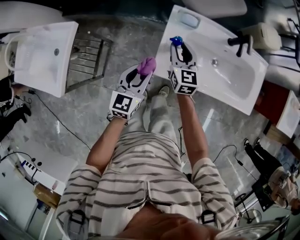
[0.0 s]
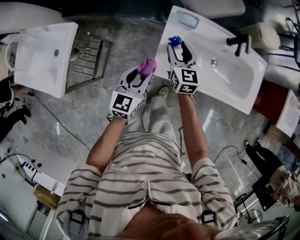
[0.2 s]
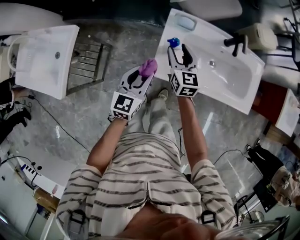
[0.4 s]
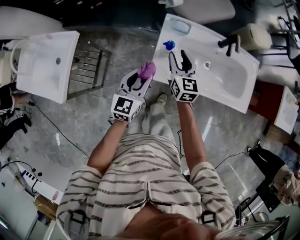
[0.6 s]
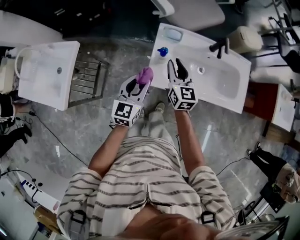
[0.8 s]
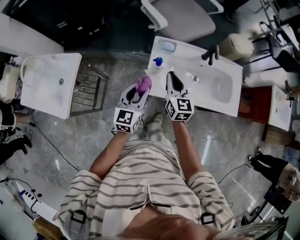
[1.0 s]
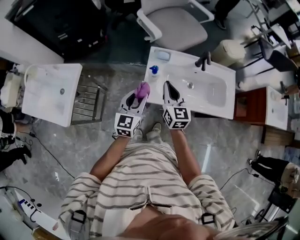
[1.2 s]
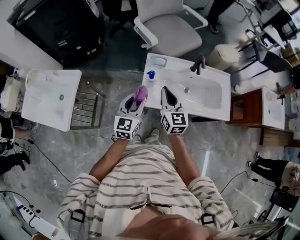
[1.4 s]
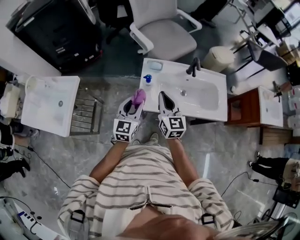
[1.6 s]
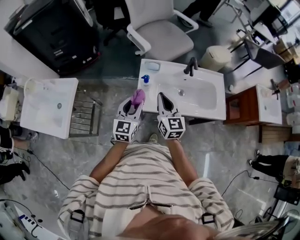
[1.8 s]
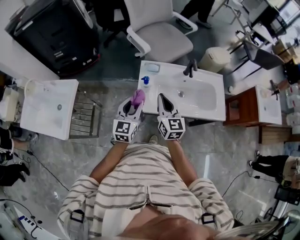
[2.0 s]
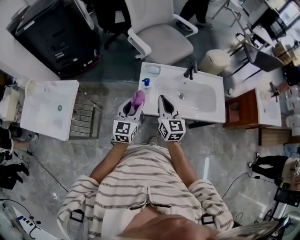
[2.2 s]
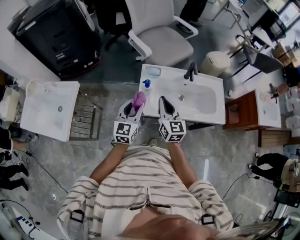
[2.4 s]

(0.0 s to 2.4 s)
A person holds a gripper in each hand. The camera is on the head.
0.0 s - 1.2 s: The right gripper moves upward and backward, approximately 15 cm, and closes its fingers, while the left gripper moves upward, approximately 10 cm.
1.2 s - 2.4 s: The grippers make only small movements.

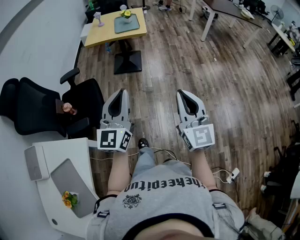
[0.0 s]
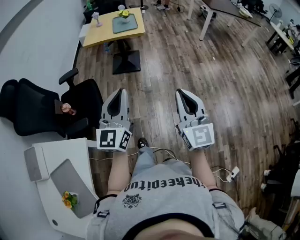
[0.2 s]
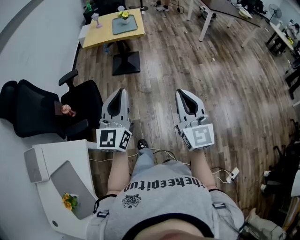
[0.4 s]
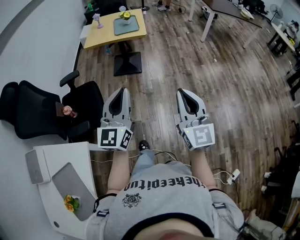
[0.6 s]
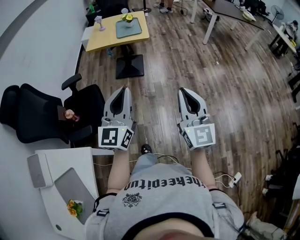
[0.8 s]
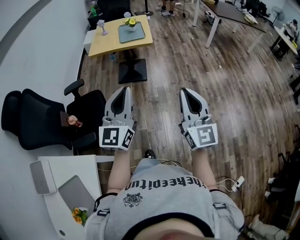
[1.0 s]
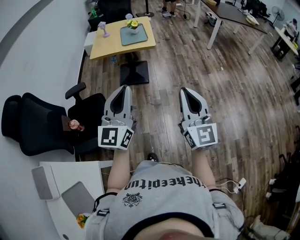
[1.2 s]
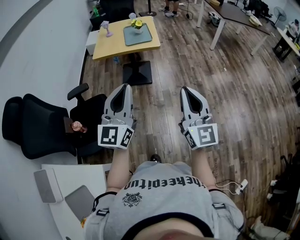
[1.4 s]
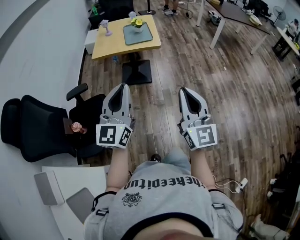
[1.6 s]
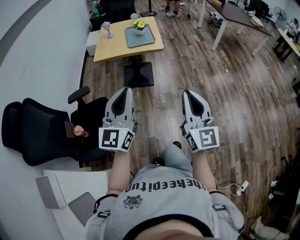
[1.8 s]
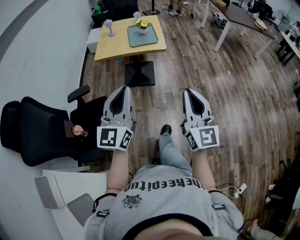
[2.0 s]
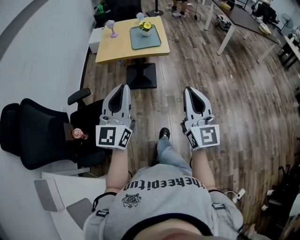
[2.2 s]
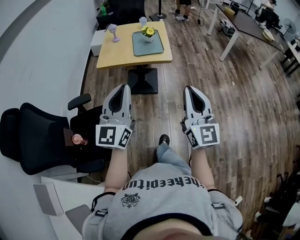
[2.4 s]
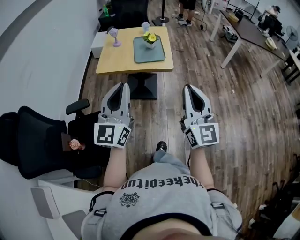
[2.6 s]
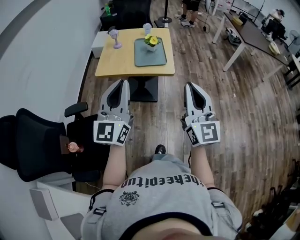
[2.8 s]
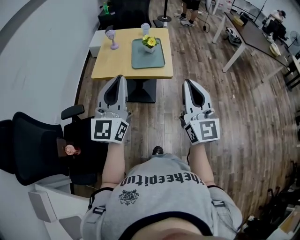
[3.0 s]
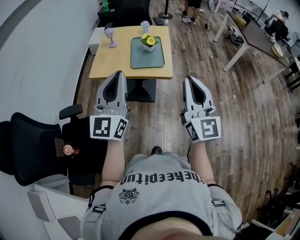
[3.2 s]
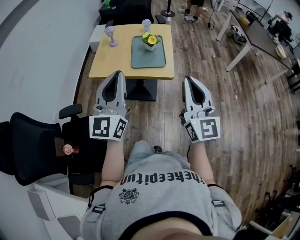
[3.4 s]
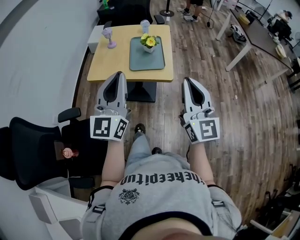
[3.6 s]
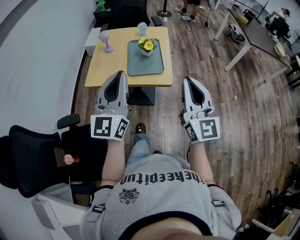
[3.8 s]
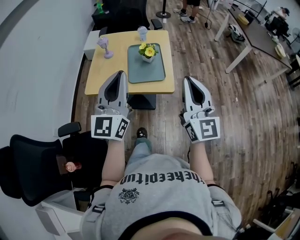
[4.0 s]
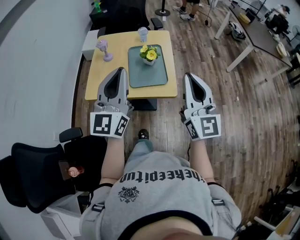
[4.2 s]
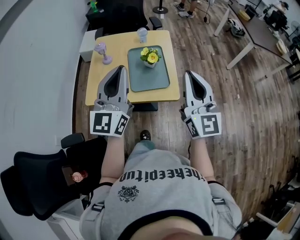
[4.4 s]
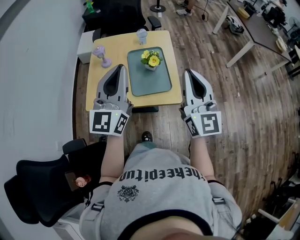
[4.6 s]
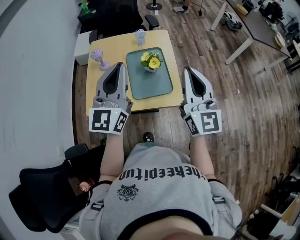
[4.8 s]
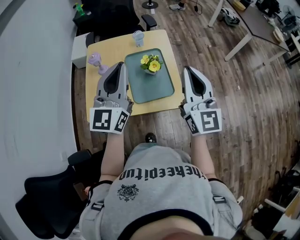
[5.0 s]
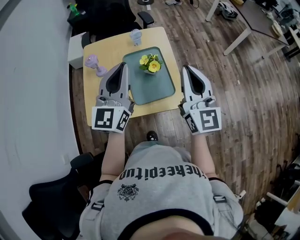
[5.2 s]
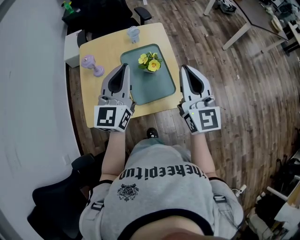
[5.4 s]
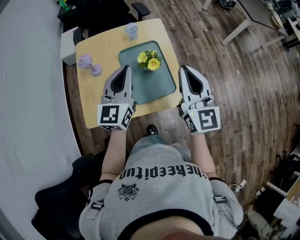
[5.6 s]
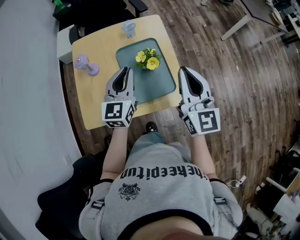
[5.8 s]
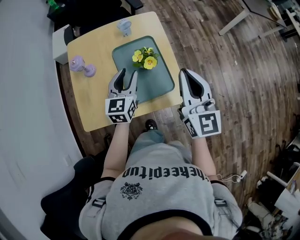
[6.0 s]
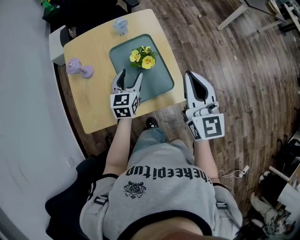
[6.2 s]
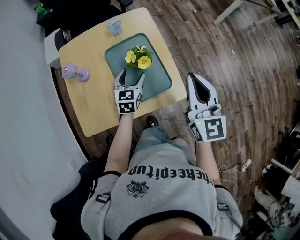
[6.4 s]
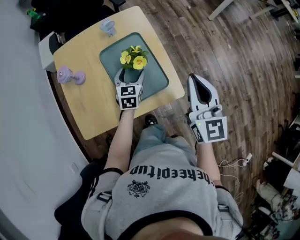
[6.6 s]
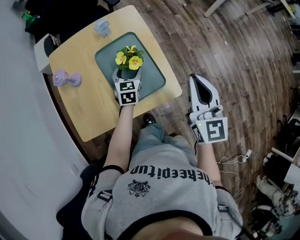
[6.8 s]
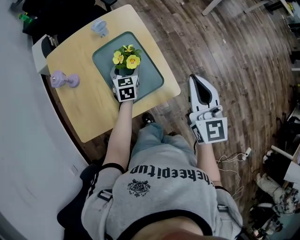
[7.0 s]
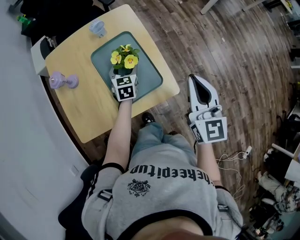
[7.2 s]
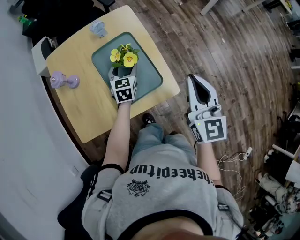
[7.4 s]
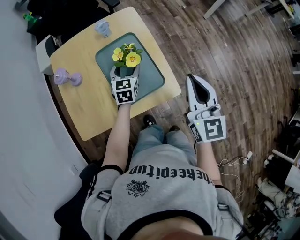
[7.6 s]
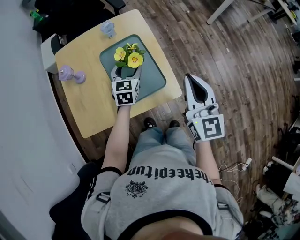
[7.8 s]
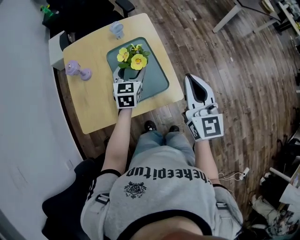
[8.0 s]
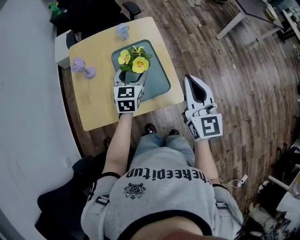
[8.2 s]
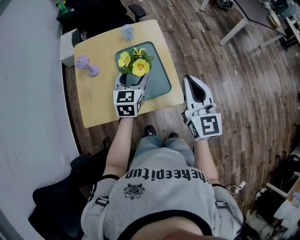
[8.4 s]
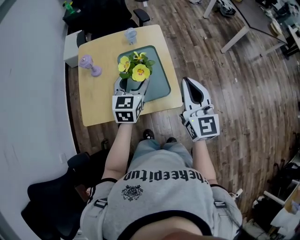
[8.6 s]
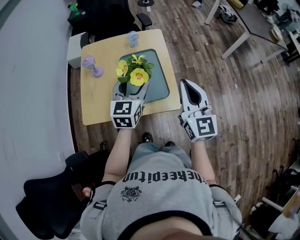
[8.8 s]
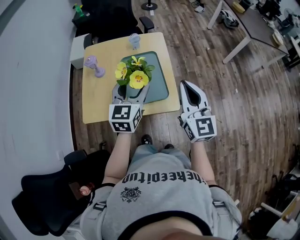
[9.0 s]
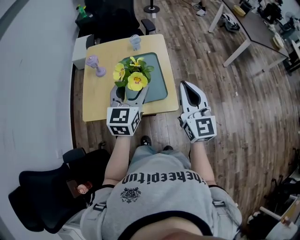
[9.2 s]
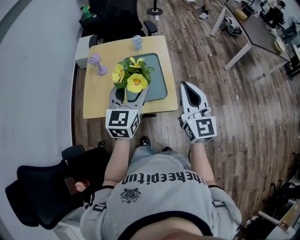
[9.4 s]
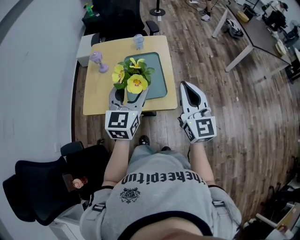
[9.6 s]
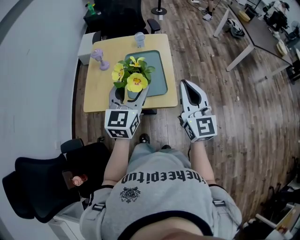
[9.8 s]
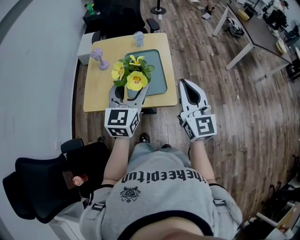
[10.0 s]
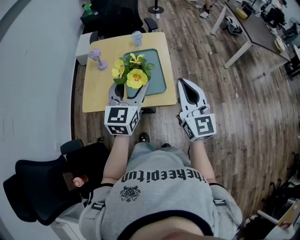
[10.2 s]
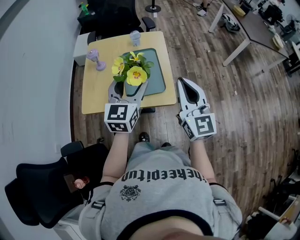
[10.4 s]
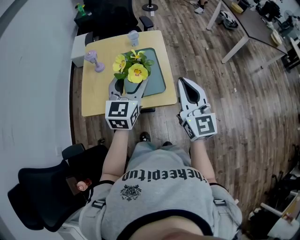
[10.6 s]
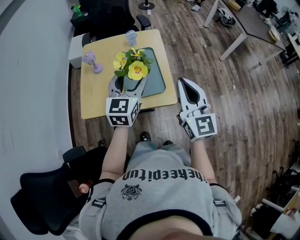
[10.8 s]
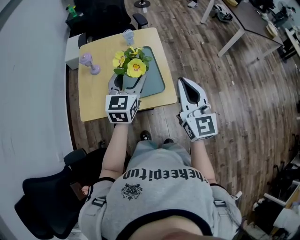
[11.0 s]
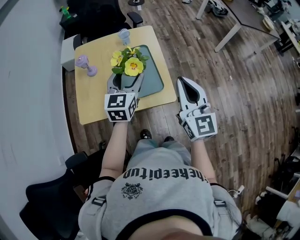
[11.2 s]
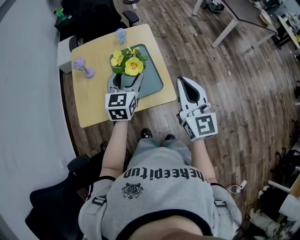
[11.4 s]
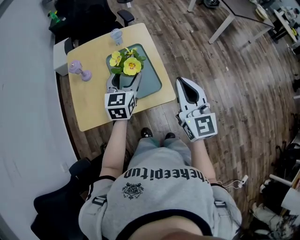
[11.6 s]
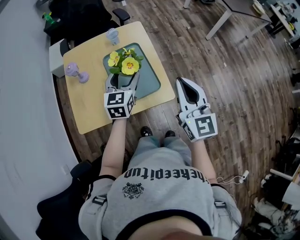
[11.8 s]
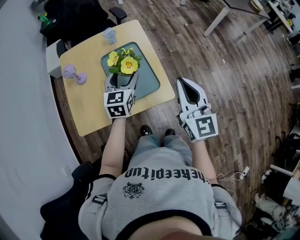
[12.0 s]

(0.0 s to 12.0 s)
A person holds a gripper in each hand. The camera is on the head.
0.0 s - 1.6 s: The two grippers go about 20 cm forward and to the left.
1.6 s - 3.0 s: The grippers both shift forward by approximately 35 cm.
3.0 s - 4.4 s: The grippers both shift forward by approximately 30 cm.
4.4 s - 6.0 s: The left gripper shifts roughly 35 cm downward and forward, angles its fingers downward, by some 30 degrees, and opens its fingers; the right gripper moves forward and downward, approximately 20 cm.
6.0 s - 7.6 s: The left gripper moves downward, forward and to the right, roughly 15 cm, and opens its fingers; the right gripper heads to the right, covering approximately 5 cm.
7.6 s - 9.0 s: The right gripper is displaced upward by some 5 cm. The left gripper goes some 25 cm upward and backward.
9.0 s - 10.4 s: The grippers both shift backward by approximately 5 cm.
10.4 s - 12.0 s: The left gripper goes approximately 20 cm forward and downward. The right gripper is displaced forward by approximately 5 cm.

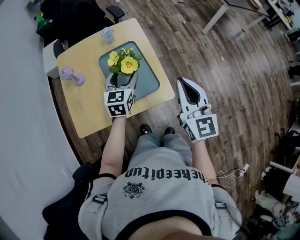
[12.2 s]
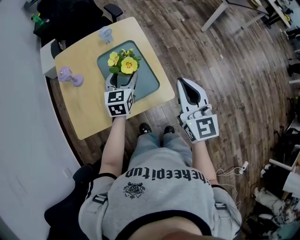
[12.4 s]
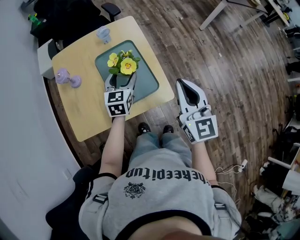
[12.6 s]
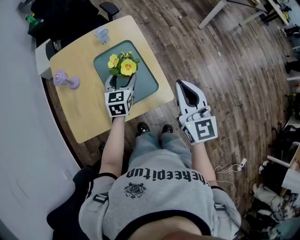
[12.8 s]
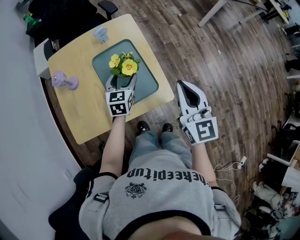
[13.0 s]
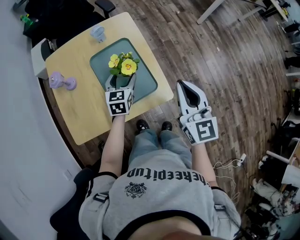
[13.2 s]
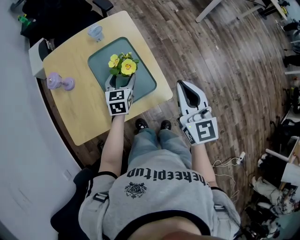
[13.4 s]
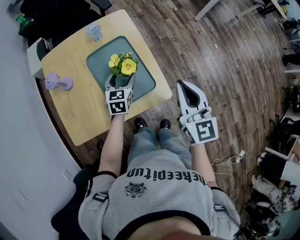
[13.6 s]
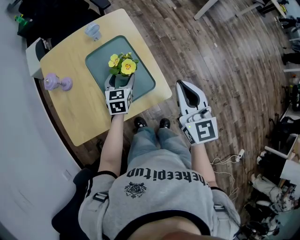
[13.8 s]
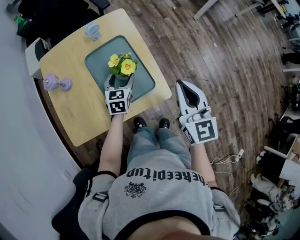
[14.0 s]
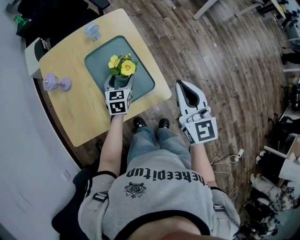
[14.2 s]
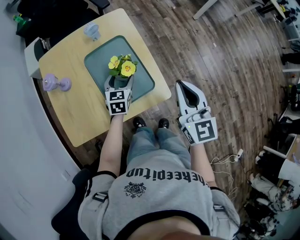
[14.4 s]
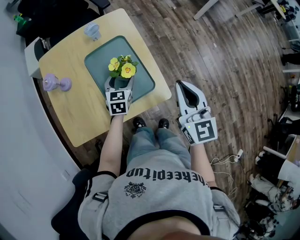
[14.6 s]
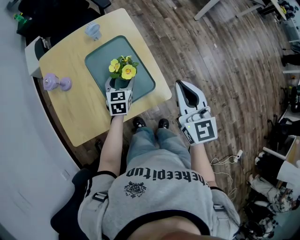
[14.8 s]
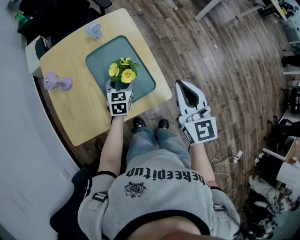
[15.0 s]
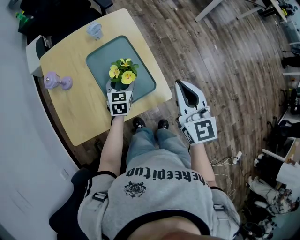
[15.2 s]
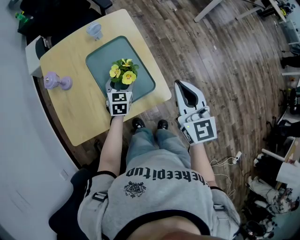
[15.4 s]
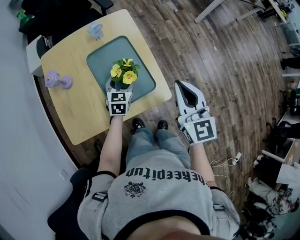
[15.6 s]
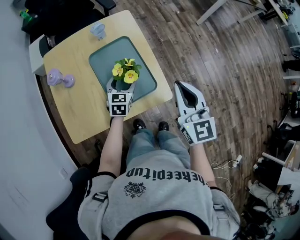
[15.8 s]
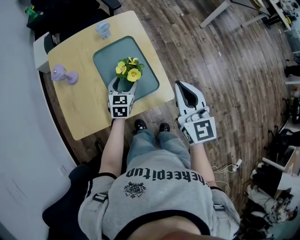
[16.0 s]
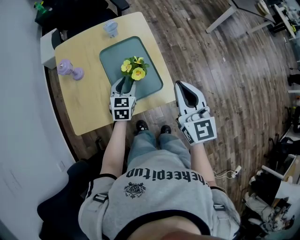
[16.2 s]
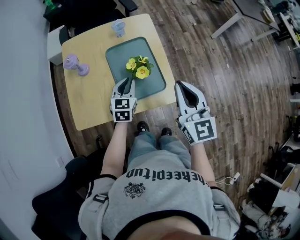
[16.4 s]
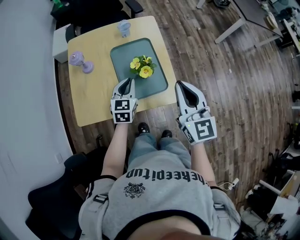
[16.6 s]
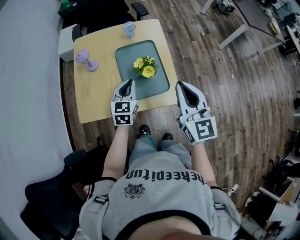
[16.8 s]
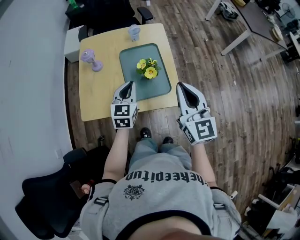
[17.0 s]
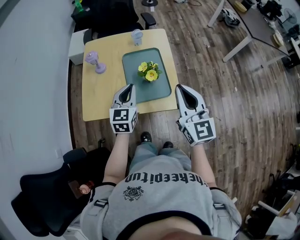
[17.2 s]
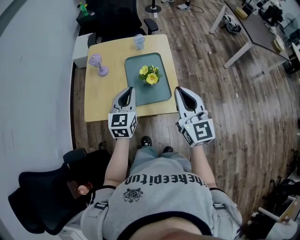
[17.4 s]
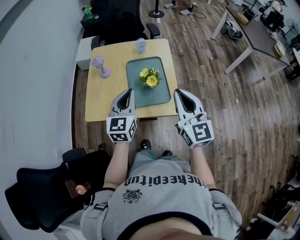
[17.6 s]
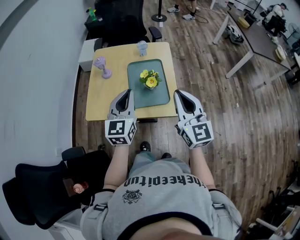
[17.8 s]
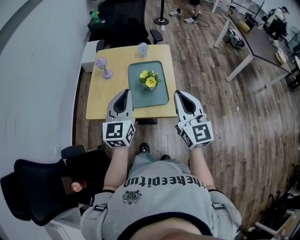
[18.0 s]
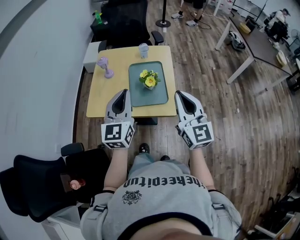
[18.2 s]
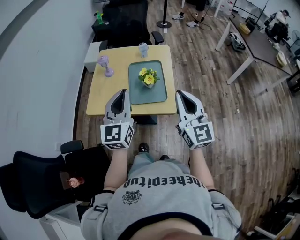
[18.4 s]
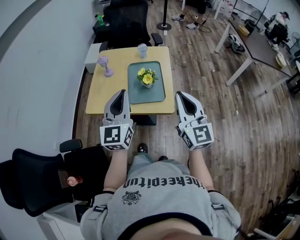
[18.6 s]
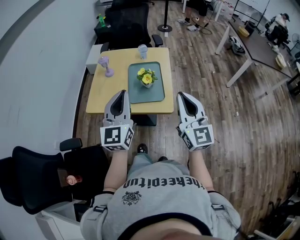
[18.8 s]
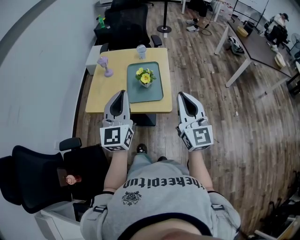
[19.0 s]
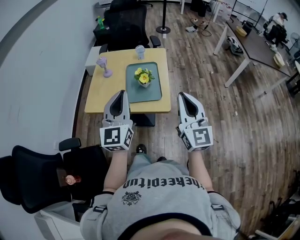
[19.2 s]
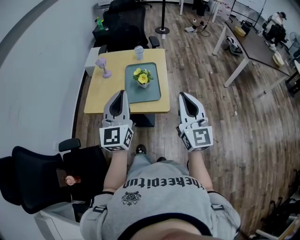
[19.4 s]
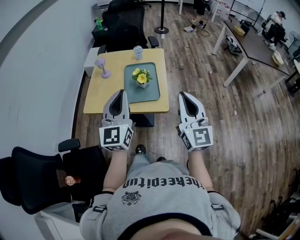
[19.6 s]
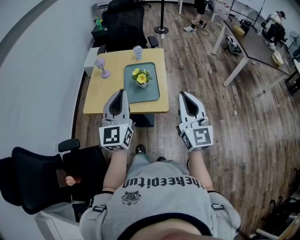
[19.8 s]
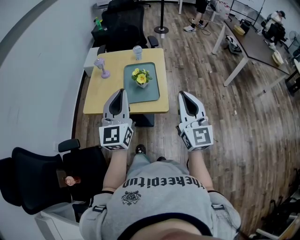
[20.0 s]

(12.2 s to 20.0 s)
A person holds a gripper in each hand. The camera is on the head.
12.2 s - 13.8 s: The left gripper travels downward by some 10 cm; the right gripper travels downward by roughly 5 cm.
13.8 s - 15.4 s: There are only small adjustments of the grippers.
15.4 s - 16.8 s: The left gripper is displaced upward, backward and to the left by some 15 cm, and closes its fingers. Meanwhile the right gripper shifts by some 10 cm.
16.8 s - 18.4 s: The left gripper heads upward and backward, covering approximately 30 cm, and swivels approximately 30 degrees. The right gripper shifts approximately 10 cm backward and upward.
18.4 s - 20.0 s: The right gripper moves backward and to the right, roughly 10 cm; the left gripper heads backward, covering approximately 5 cm.

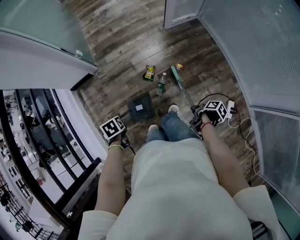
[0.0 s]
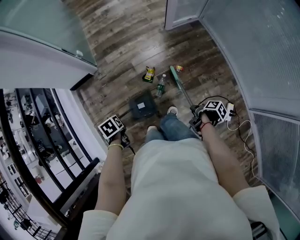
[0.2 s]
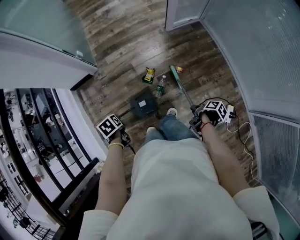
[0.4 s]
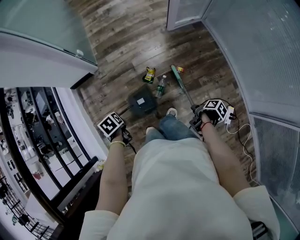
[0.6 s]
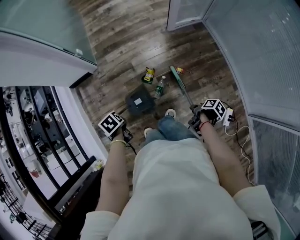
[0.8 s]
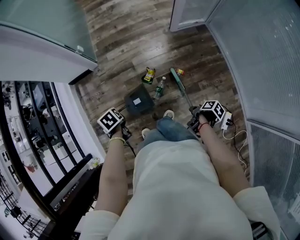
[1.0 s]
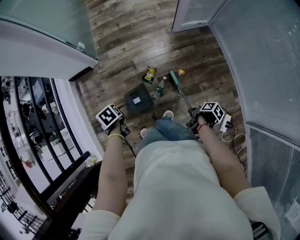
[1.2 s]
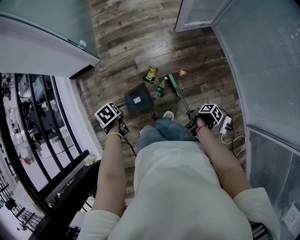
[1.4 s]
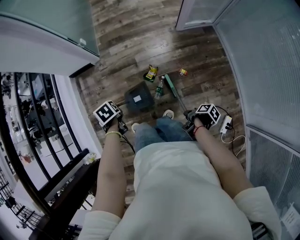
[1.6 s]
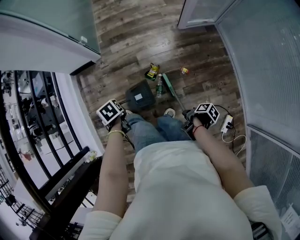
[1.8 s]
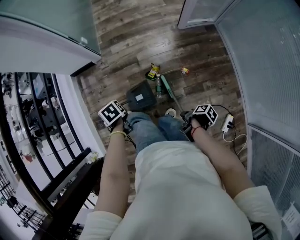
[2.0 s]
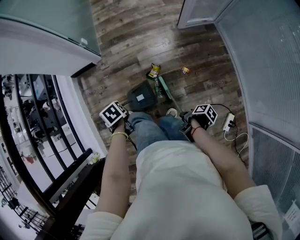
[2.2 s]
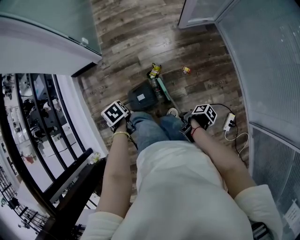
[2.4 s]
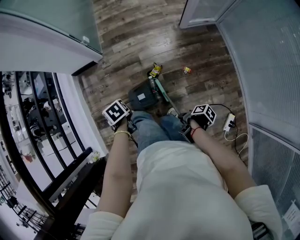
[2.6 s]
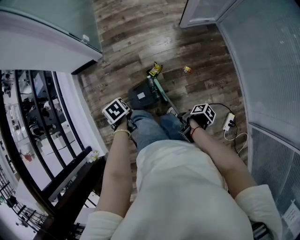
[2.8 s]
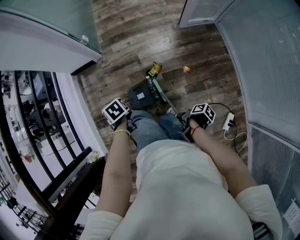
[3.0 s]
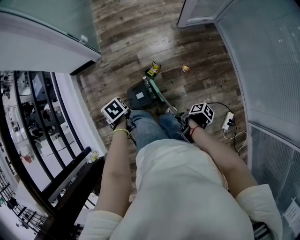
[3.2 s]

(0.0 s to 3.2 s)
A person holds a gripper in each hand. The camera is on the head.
0.0 s - 1.6 s: The left gripper moves about 10 cm.
